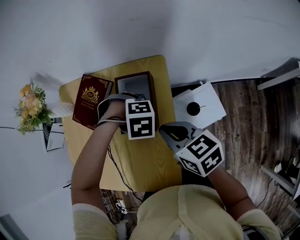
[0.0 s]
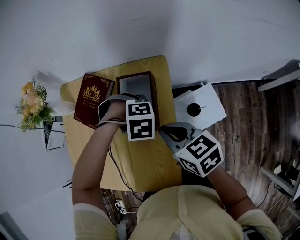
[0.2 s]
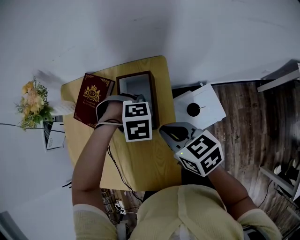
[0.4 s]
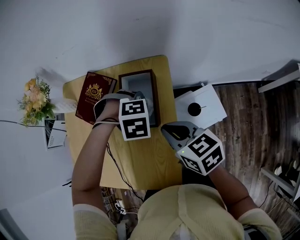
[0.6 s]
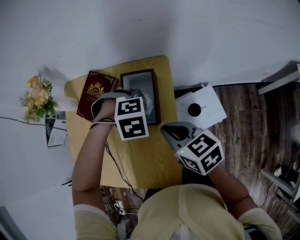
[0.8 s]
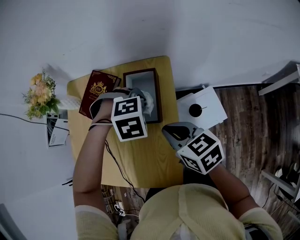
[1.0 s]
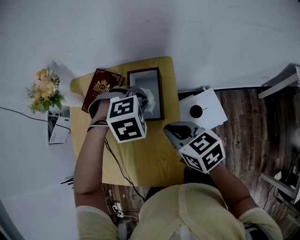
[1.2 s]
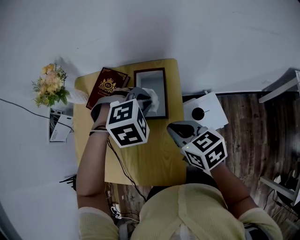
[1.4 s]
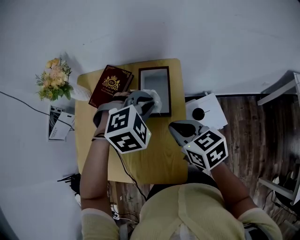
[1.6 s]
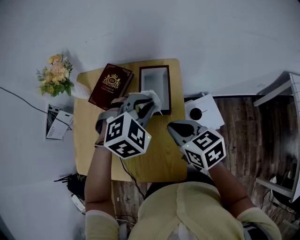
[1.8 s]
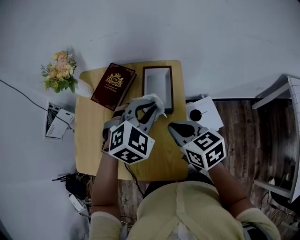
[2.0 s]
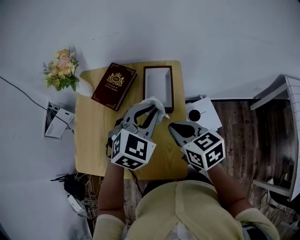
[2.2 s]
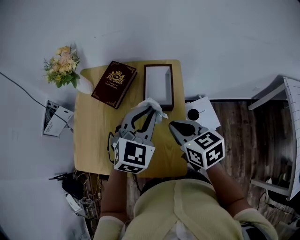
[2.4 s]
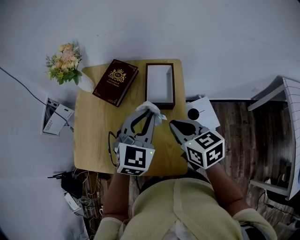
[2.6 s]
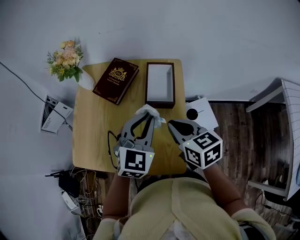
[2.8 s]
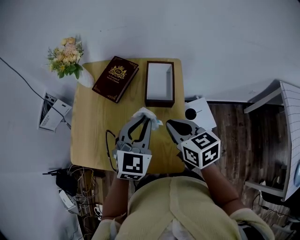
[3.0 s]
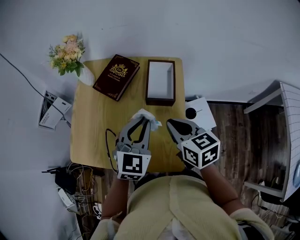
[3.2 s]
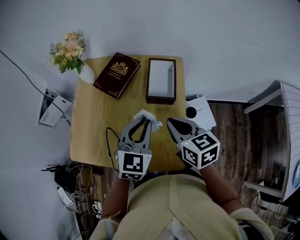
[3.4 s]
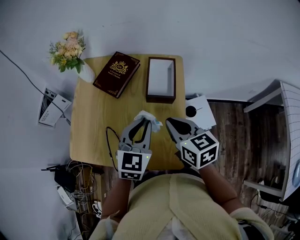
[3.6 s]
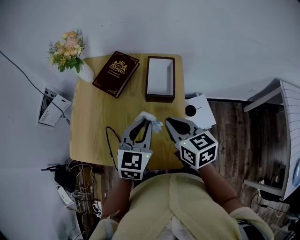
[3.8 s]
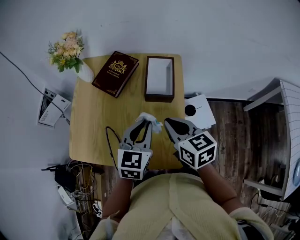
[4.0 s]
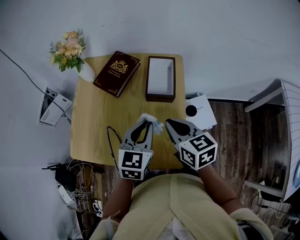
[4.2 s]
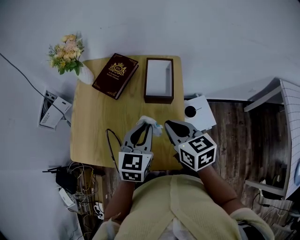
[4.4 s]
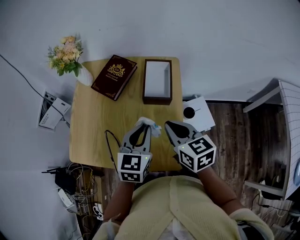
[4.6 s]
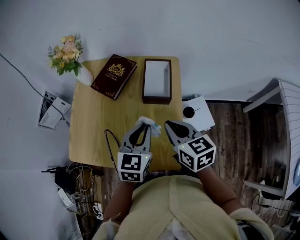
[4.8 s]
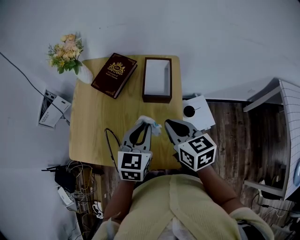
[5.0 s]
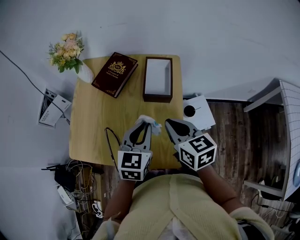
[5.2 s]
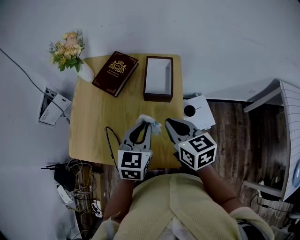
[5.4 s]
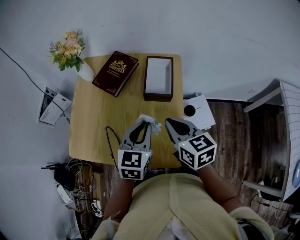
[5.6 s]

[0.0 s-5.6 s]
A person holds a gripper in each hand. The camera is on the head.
0.0 to 1.4 s: The left gripper travels upward by some 15 cm, and turns by roughly 30 degrees.
1.4 to 2.8 s: The left gripper is displaced backward and to the left by some 15 cm, and tilts its fingers some 50 degrees upward. Meanwhile the right gripper changes place by about 5 cm.
2.8 to 4.2 s: The left gripper shifts by about 5 cm, and changes its angle by approximately 20 degrees.
4.2 to 5.6 s: Neither gripper changes place.

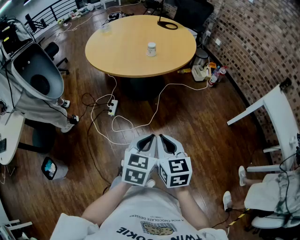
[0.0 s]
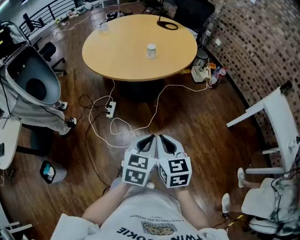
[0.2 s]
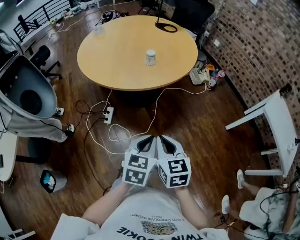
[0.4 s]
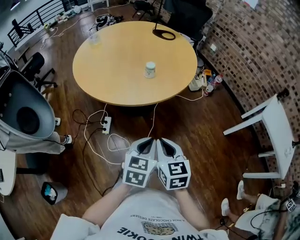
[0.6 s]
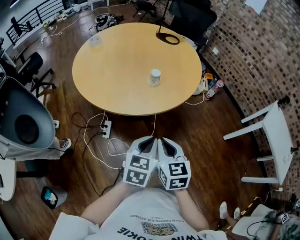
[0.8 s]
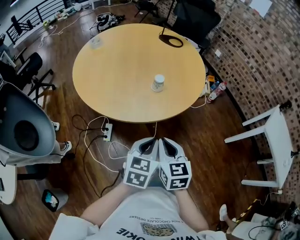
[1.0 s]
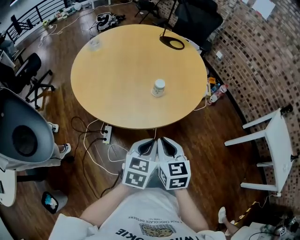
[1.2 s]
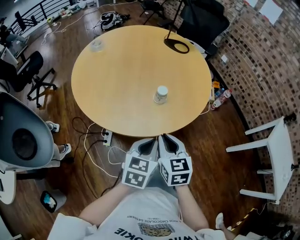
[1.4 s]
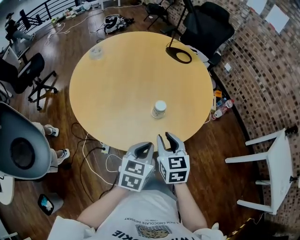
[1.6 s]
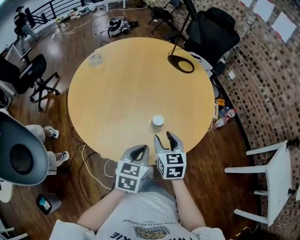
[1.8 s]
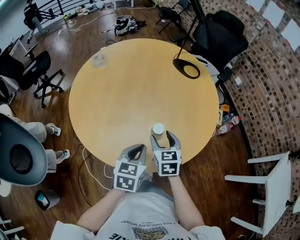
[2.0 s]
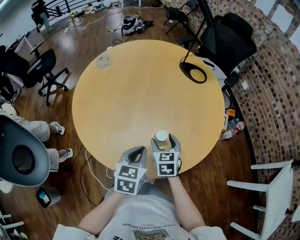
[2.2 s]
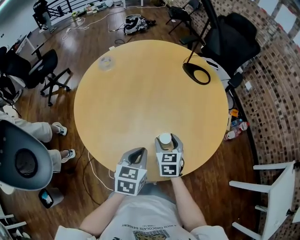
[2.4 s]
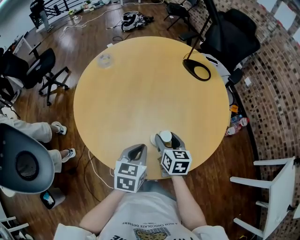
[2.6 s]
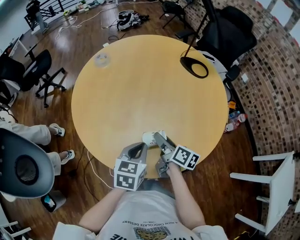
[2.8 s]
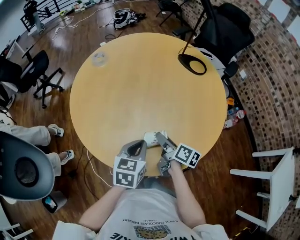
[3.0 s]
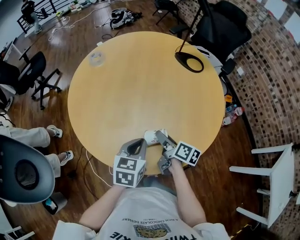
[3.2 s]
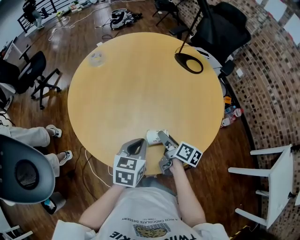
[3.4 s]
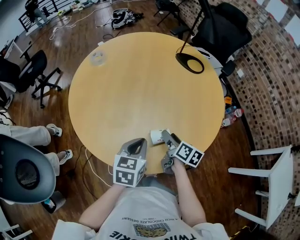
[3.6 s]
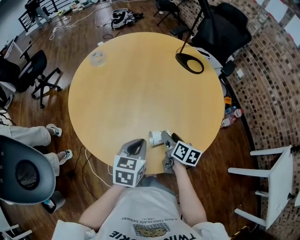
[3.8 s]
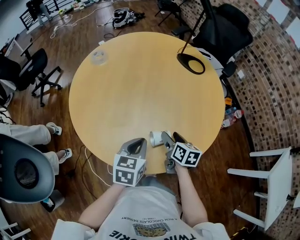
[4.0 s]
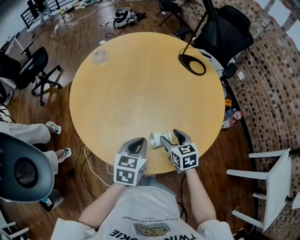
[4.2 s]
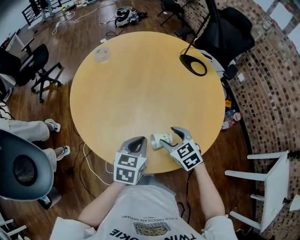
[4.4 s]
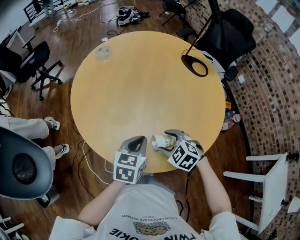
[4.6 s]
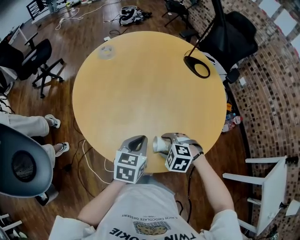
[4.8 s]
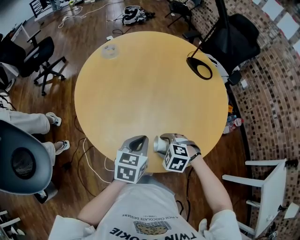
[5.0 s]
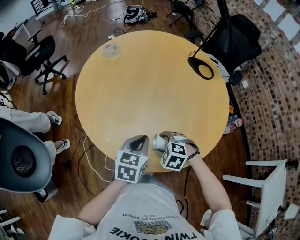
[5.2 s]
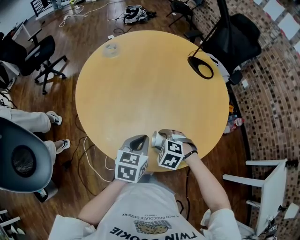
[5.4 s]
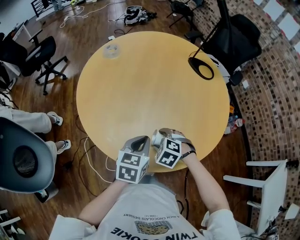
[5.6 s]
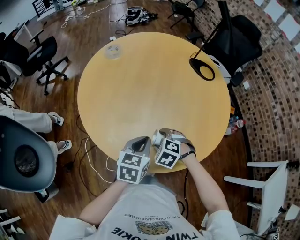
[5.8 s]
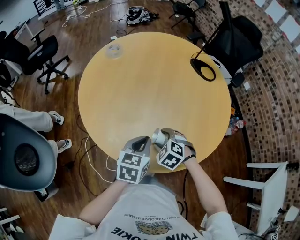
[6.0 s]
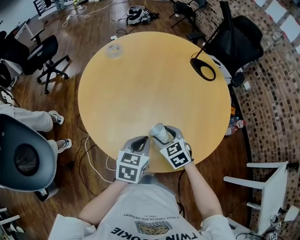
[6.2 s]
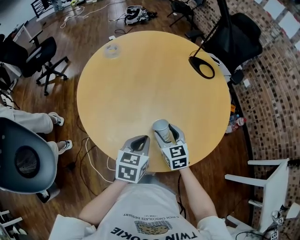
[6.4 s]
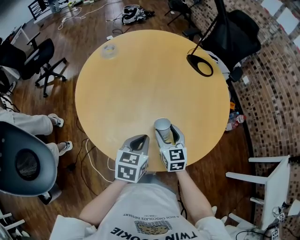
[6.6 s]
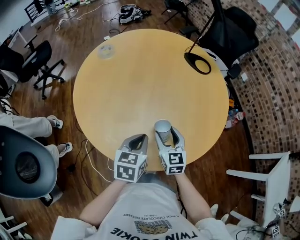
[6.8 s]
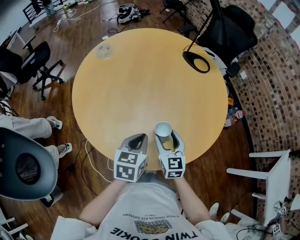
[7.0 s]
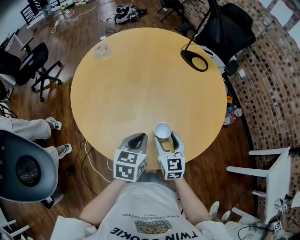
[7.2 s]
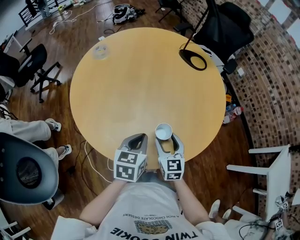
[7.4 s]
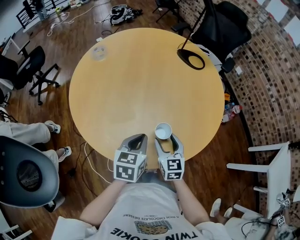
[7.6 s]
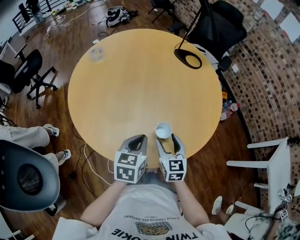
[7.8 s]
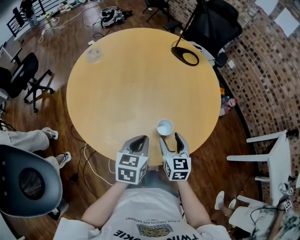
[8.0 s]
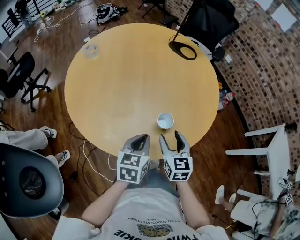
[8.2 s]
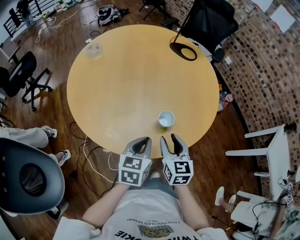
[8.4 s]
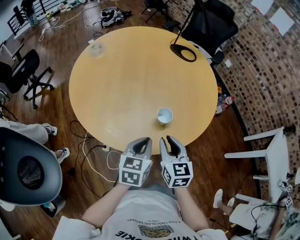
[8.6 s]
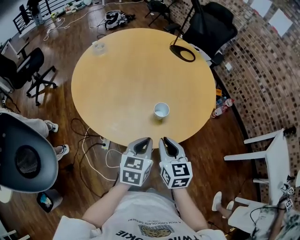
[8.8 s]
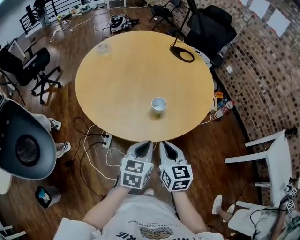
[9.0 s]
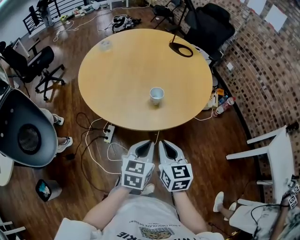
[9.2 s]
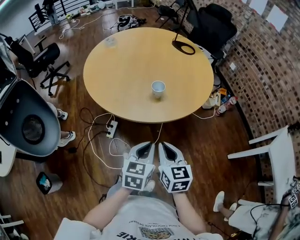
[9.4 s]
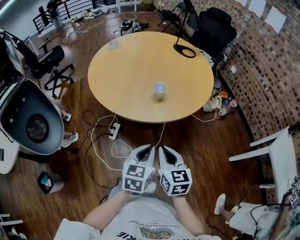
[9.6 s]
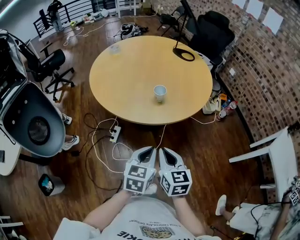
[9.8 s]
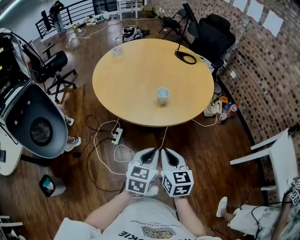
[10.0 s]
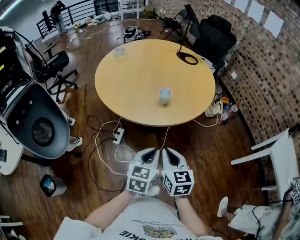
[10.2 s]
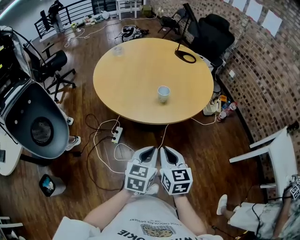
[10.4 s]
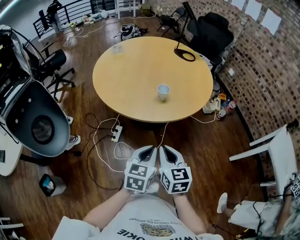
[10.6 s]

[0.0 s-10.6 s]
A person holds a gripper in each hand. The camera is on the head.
0.0 to 1.6 s: The two grippers travel together, forward, roughly 50 cm.
1.6 to 3.0 s: The left gripper is displaced forward by about 15 cm. Meanwhile the right gripper shifts some 20 cm forward and downward, rolls clockwise, seen from behind, by some 60 degrees, and opens up.
3.0 to 4.6 s: The right gripper ends up approximately 5 cm from where it was, and twists some 90 degrees counterclockwise, seen from behind.
4.6 to 6.0 s: The right gripper moves some 5 cm.
6.0 to 7.6 s: The right gripper shifts some 5 cm to the right, and tilts its fingers roughly 40 degrees upward.
7.6 to 9.0 s: The right gripper is displaced backward and upward by about 20 cm, and closes up. The left gripper goes about 20 cm backward and to the right.
9.0 to 10.6 s: Both grippers travel together backward, some 15 cm.

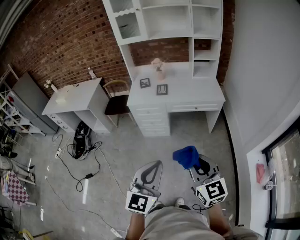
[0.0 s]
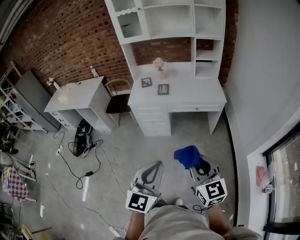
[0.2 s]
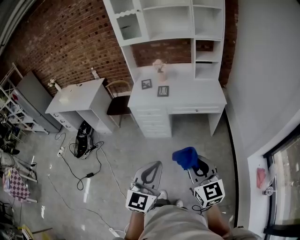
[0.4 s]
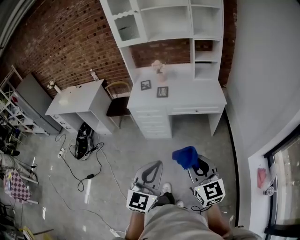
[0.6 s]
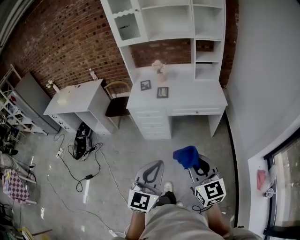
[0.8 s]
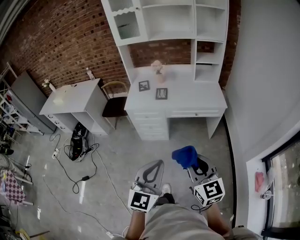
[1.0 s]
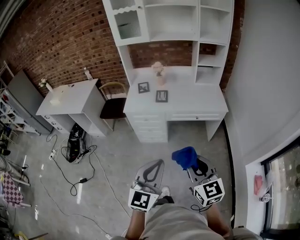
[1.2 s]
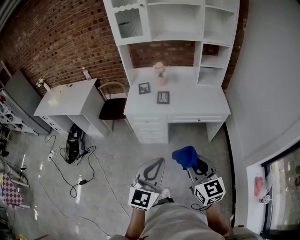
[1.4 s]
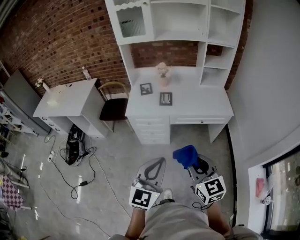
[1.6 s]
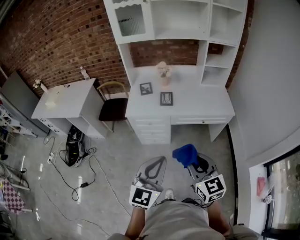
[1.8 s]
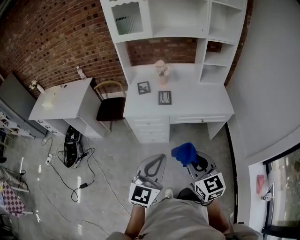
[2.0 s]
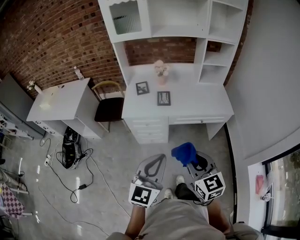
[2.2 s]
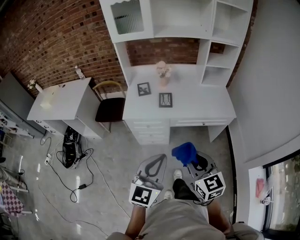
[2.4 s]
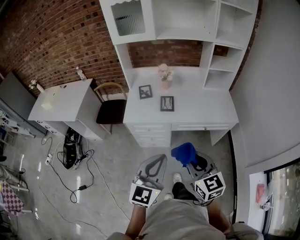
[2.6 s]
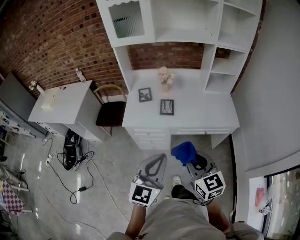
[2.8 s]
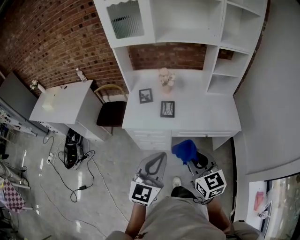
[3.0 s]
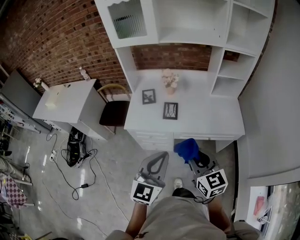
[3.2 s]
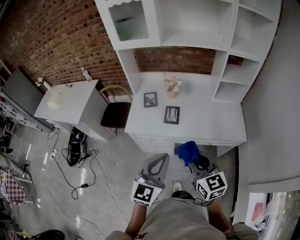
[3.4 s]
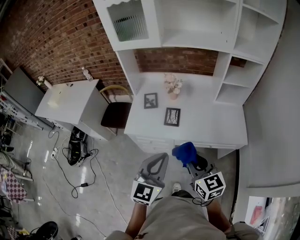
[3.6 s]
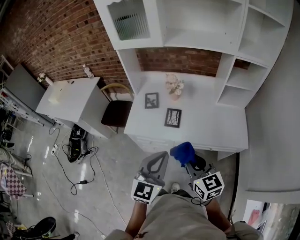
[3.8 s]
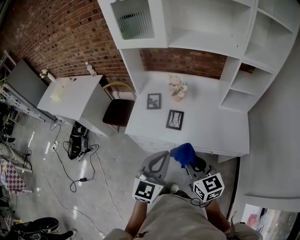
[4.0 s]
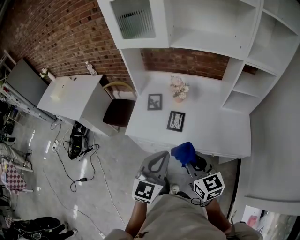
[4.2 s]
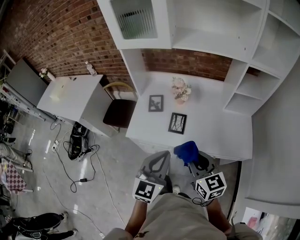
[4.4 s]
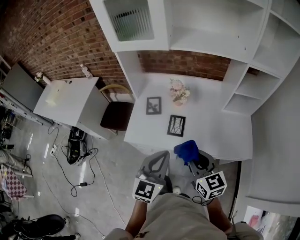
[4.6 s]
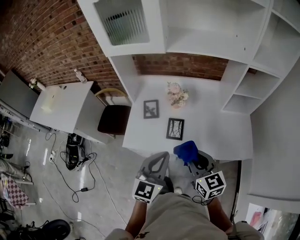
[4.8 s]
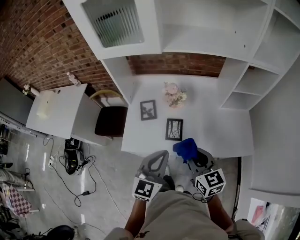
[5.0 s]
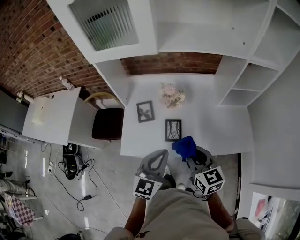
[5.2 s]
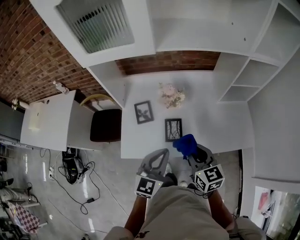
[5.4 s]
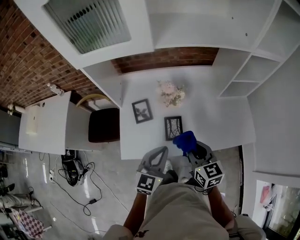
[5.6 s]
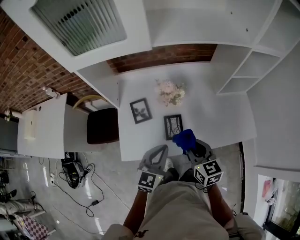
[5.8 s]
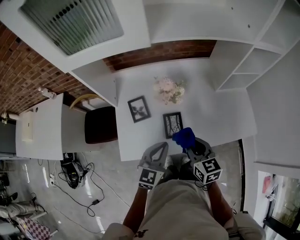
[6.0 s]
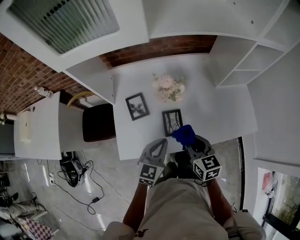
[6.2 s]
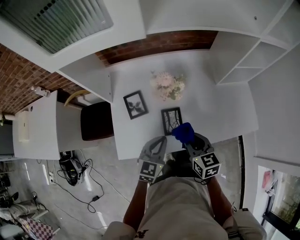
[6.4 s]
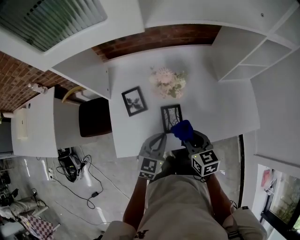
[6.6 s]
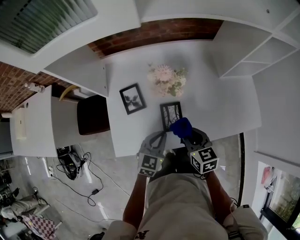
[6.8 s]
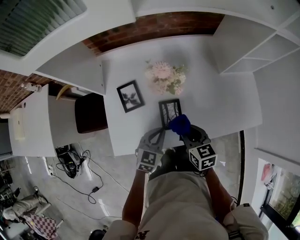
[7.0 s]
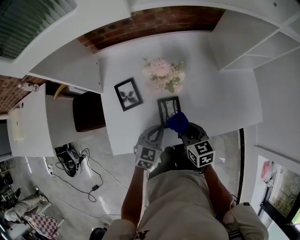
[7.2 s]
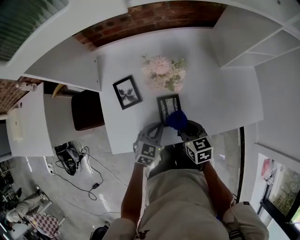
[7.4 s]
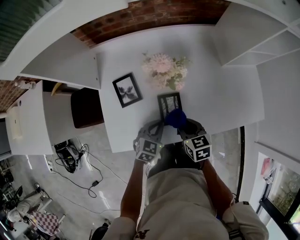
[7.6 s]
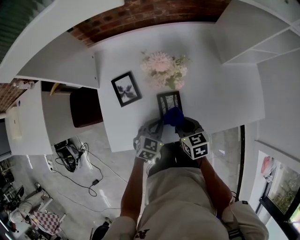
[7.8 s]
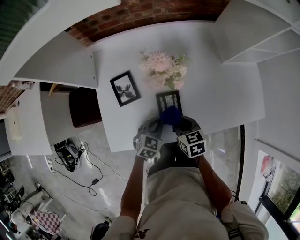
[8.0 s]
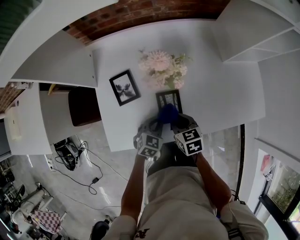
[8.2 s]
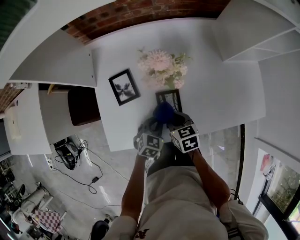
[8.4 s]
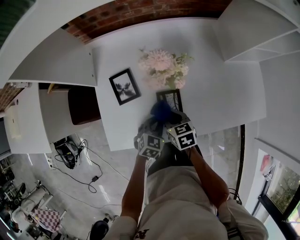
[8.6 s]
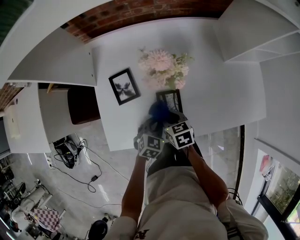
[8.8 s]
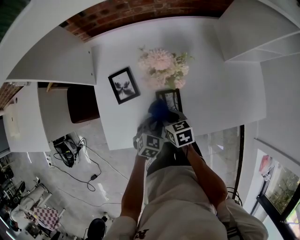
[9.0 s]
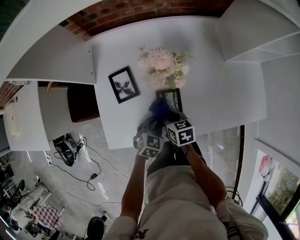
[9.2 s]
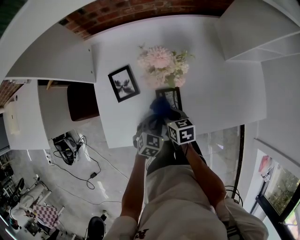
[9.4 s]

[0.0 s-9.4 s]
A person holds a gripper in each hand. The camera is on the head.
0.0 to 1.6 s: Both grippers travel together forward, about 20 cm.
1.6 to 3.2 s: The two grippers go approximately 20 cm forward.
3.2 to 4.8 s: The two grippers go approximately 20 cm forward.
4.8 to 6.2 s: The two grippers go roughly 20 cm downward and forward. The left gripper rotates roughly 20 degrees; the right gripper swivels about 20 degrees.
6.2 to 7.8 s: Both grippers travel together downward, about 15 cm. The left gripper turns by roughly 20 degrees.
7.8 to 9.4 s: The right gripper goes approximately 5 cm downward.
